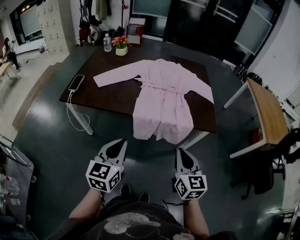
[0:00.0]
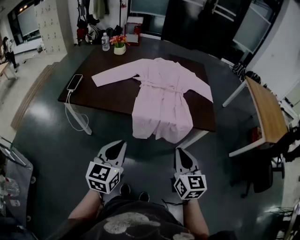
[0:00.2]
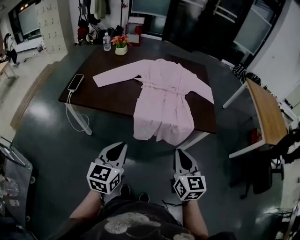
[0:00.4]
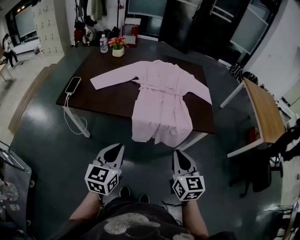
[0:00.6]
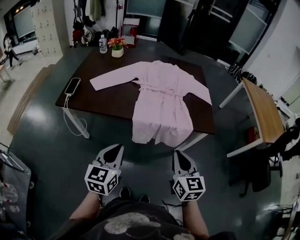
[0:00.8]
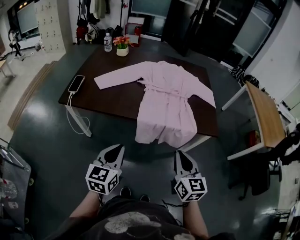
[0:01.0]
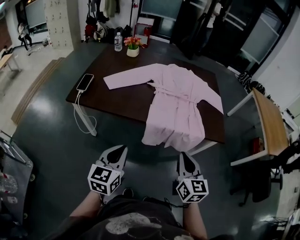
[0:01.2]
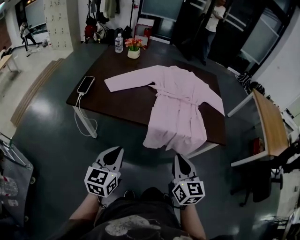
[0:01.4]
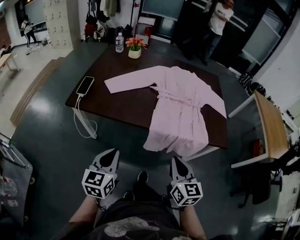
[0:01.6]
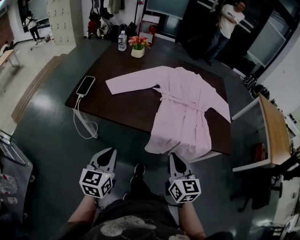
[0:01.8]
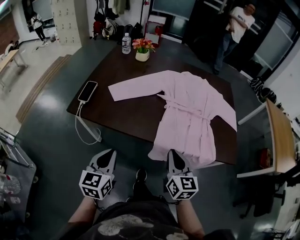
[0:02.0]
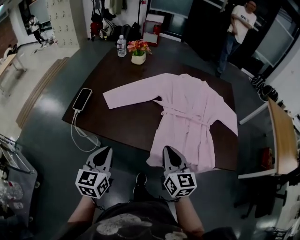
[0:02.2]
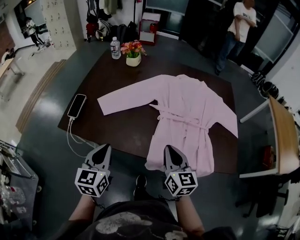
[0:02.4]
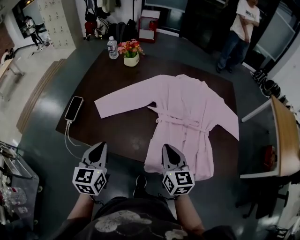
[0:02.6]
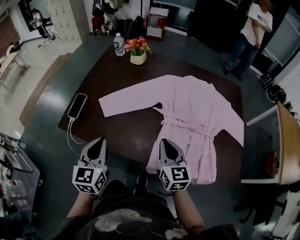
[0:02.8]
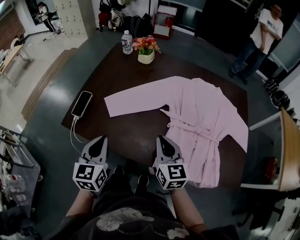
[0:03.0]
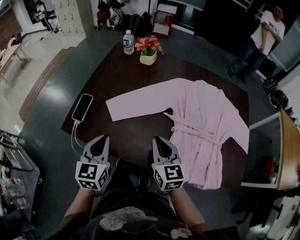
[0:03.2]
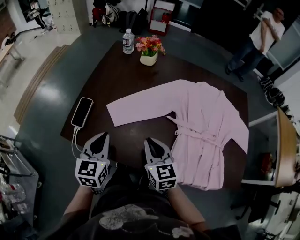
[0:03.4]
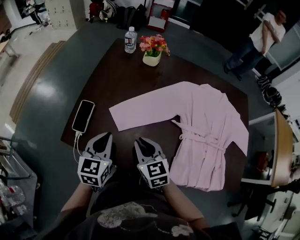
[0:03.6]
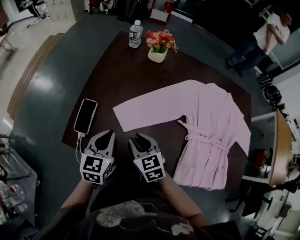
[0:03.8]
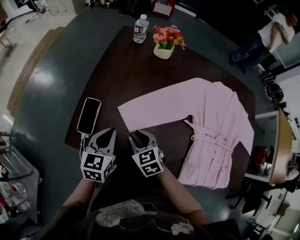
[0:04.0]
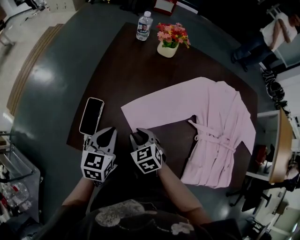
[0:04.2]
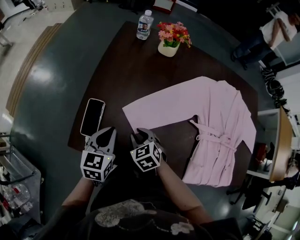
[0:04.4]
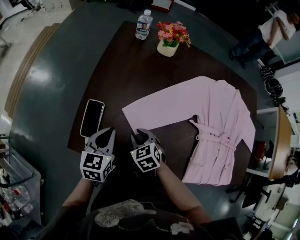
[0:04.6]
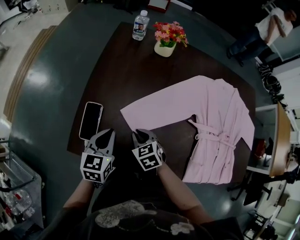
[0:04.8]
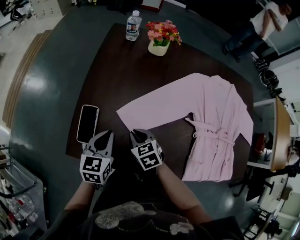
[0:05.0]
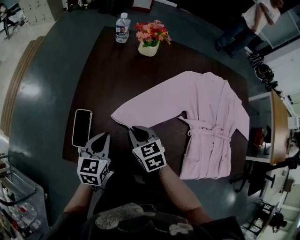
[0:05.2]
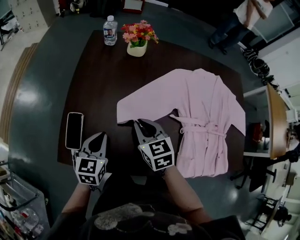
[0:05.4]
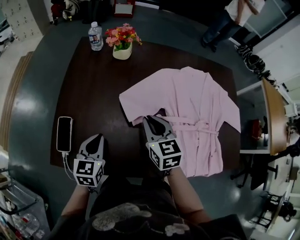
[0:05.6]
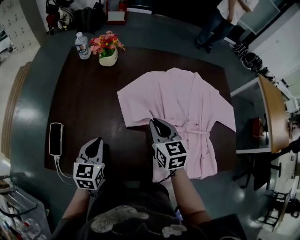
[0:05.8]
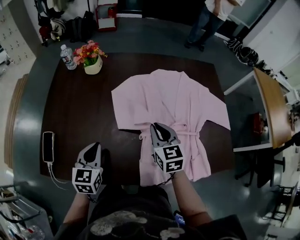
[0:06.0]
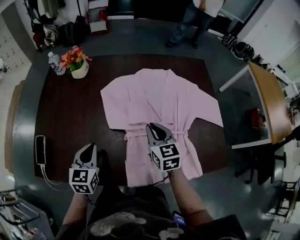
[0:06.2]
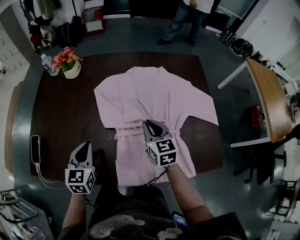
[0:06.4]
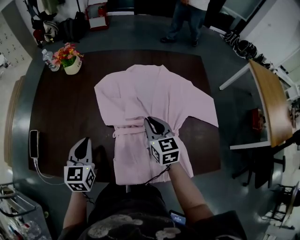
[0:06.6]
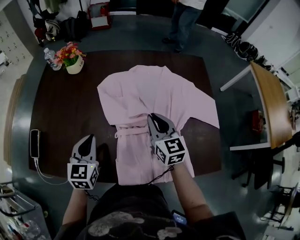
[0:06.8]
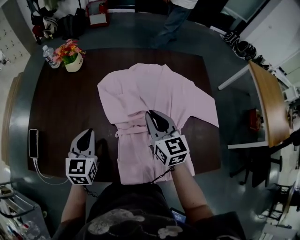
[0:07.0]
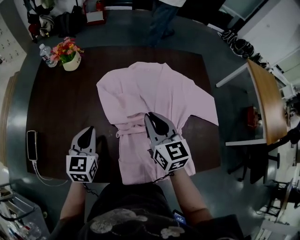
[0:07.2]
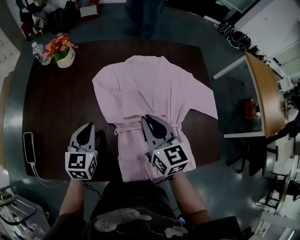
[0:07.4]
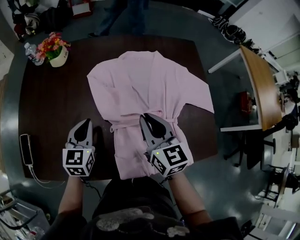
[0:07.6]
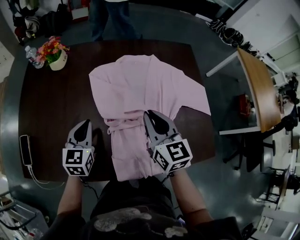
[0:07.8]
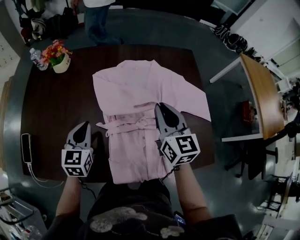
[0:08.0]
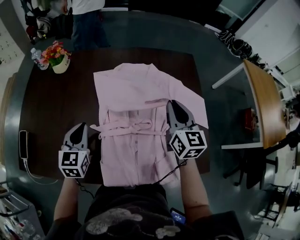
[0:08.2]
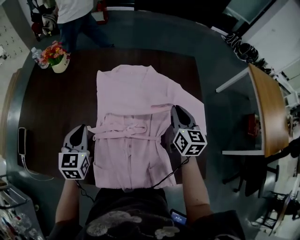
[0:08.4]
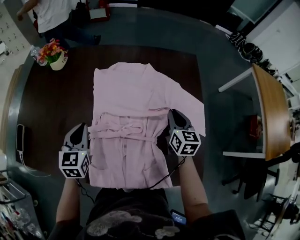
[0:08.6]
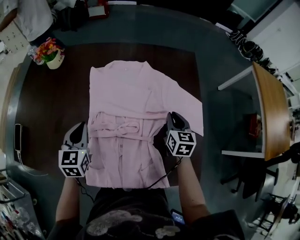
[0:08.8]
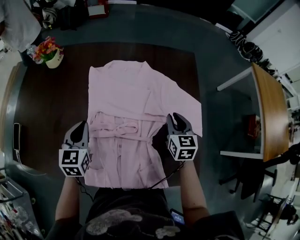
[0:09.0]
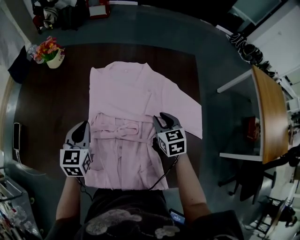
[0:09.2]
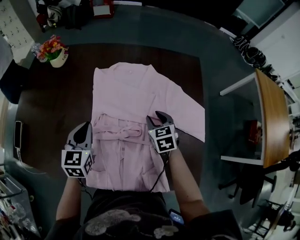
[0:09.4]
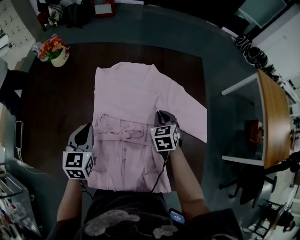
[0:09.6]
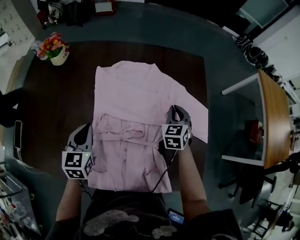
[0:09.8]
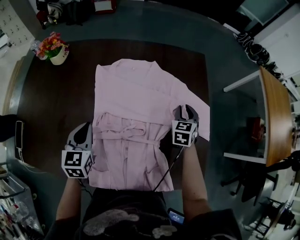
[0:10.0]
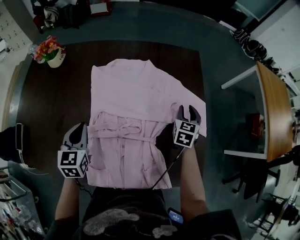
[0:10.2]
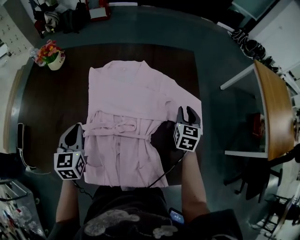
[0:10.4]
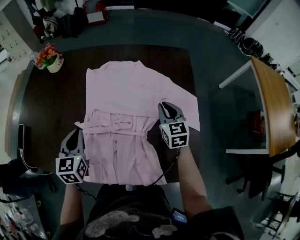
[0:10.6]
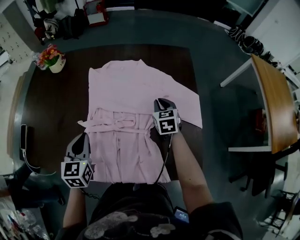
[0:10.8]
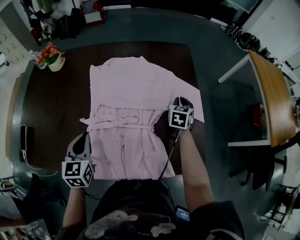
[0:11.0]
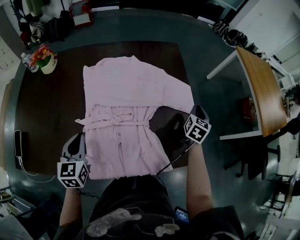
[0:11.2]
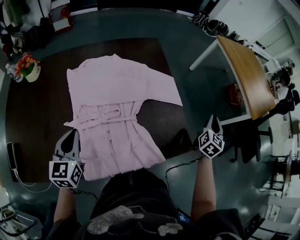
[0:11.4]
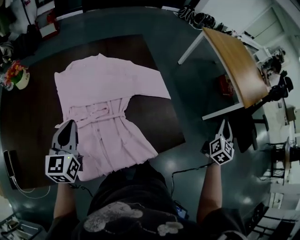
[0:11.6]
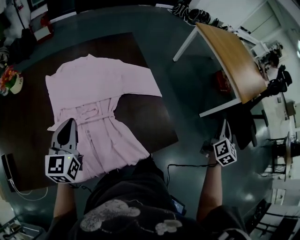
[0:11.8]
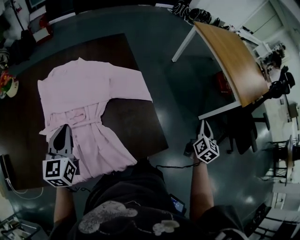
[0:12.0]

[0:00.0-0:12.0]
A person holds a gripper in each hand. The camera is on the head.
0:00.0 to 0:01.6: The left gripper moves to the left, about 15 cm. Meanwhile the right gripper goes roughly 15 cm to the left and forward.
0:01.6 to 0:03.0: Both grippers move forward, about 30 cm.
0:03.0 to 0:04.4: The right gripper travels to the left, downward and forward by roughly 35 cm, and angles its fingers downward, by roughly 40 degrees. Meanwhile the left gripper moves forward, to the left and downward, approximately 25 cm.
0:04.4 to 0:06.0: The right gripper shifts roughly 35 cm to the right, and rotates roughly 40 degrees; the left gripper heads to the right, covering some 20 cm.
0:06.0 to 0:07.6: The left gripper shifts approximately 15 cm to the right and forward. Meanwhile the right gripper shifts approximately 10 cm to the right and upward.
0:07.6 to 0:09.0: The right gripper travels to the right by some 25 cm, while the left gripper shifts approximately 10 cm to the right.
0:09.0 to 0:10.4: The right gripper travels to the right by about 10 cm.
0:10.4 to 0:12.0: The right gripper swings up and down, about 15 cm each way, with 2 reversals, changes its angle by about 40 degrees, and closes its fingers. The left gripper changes place by some 20 cm, and rotates roughly 20 degrees.

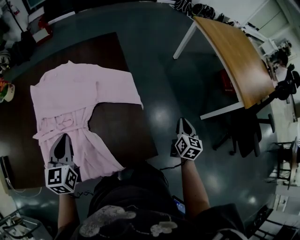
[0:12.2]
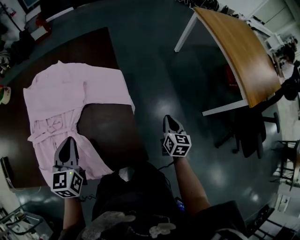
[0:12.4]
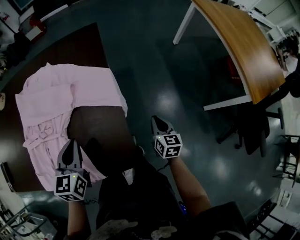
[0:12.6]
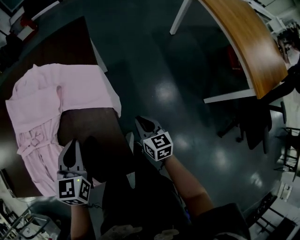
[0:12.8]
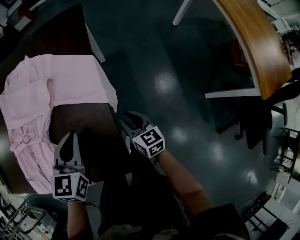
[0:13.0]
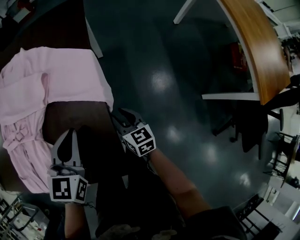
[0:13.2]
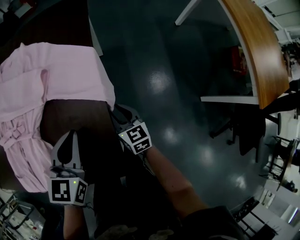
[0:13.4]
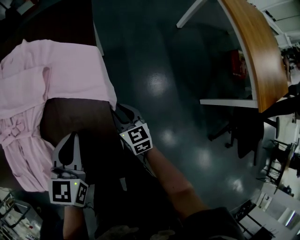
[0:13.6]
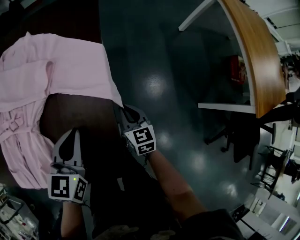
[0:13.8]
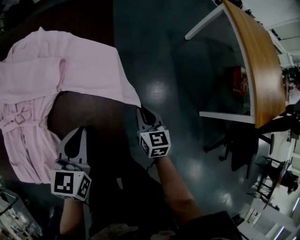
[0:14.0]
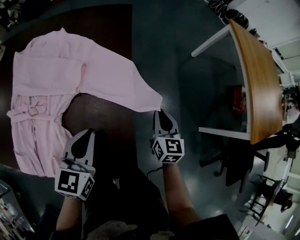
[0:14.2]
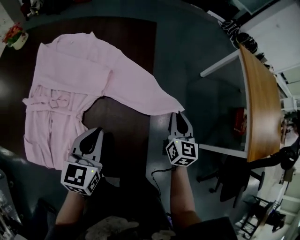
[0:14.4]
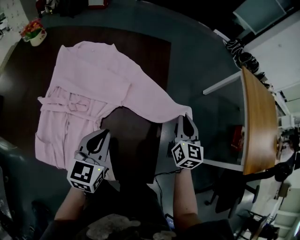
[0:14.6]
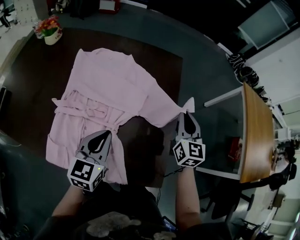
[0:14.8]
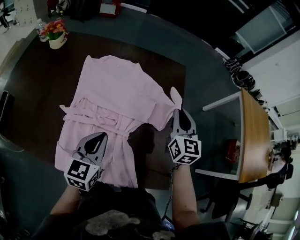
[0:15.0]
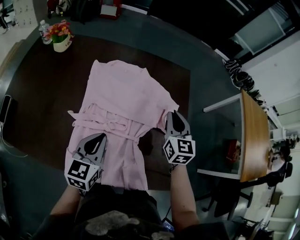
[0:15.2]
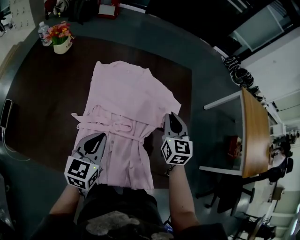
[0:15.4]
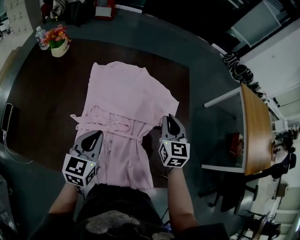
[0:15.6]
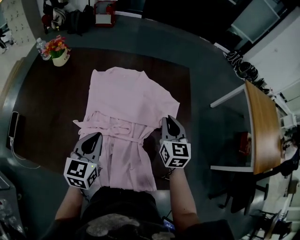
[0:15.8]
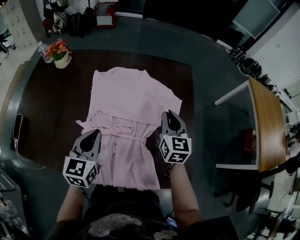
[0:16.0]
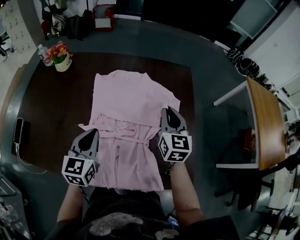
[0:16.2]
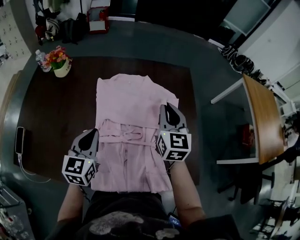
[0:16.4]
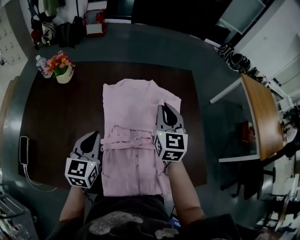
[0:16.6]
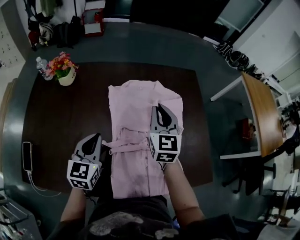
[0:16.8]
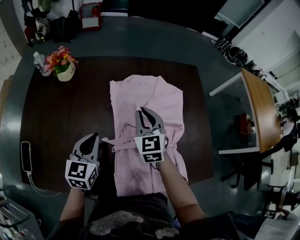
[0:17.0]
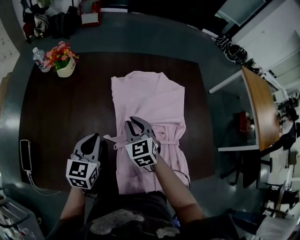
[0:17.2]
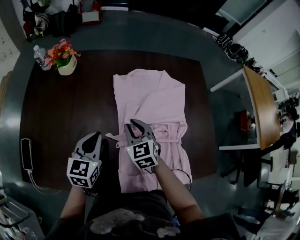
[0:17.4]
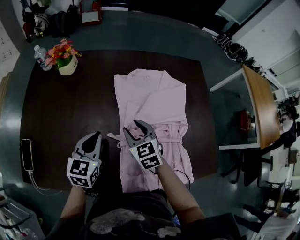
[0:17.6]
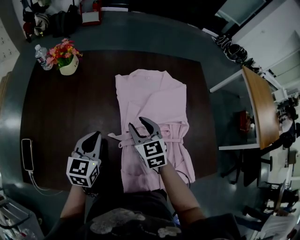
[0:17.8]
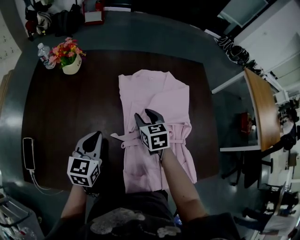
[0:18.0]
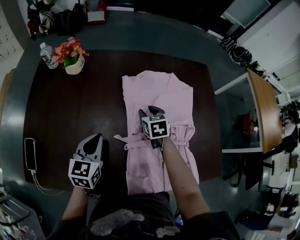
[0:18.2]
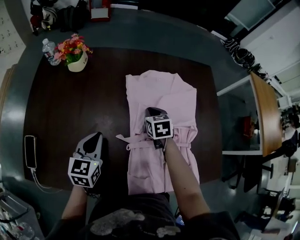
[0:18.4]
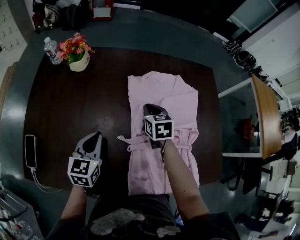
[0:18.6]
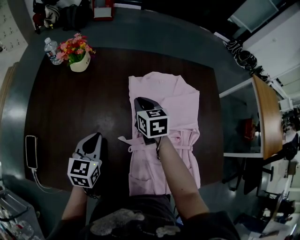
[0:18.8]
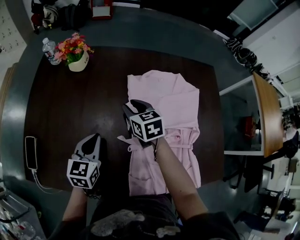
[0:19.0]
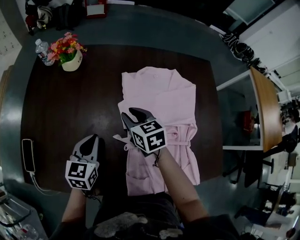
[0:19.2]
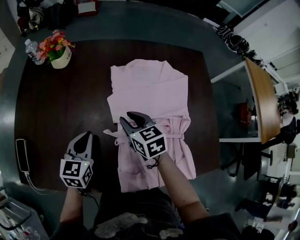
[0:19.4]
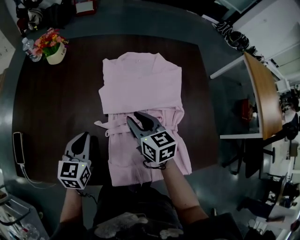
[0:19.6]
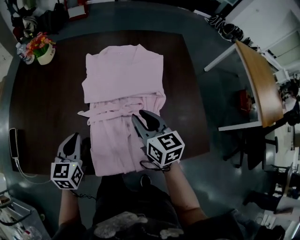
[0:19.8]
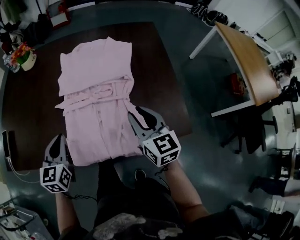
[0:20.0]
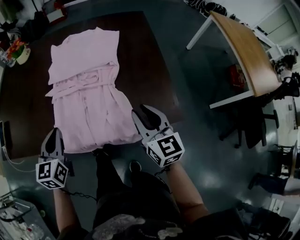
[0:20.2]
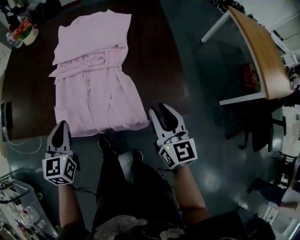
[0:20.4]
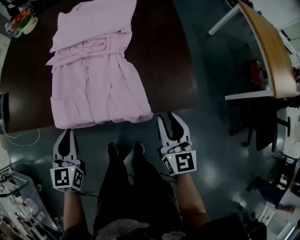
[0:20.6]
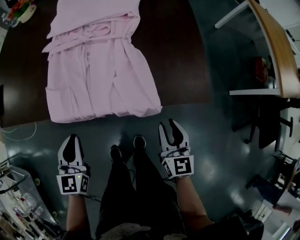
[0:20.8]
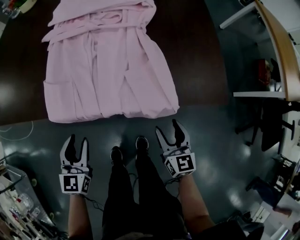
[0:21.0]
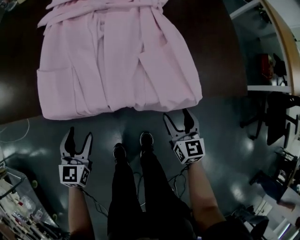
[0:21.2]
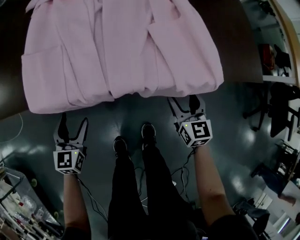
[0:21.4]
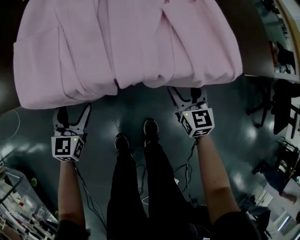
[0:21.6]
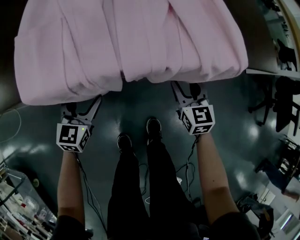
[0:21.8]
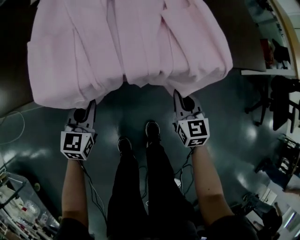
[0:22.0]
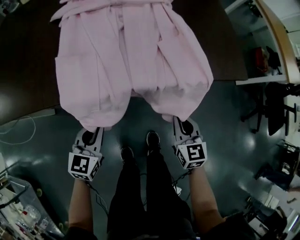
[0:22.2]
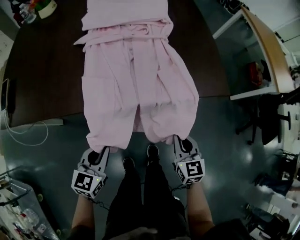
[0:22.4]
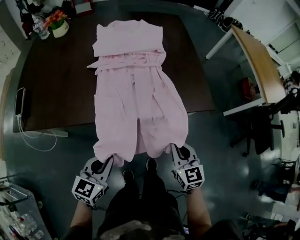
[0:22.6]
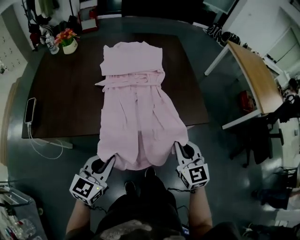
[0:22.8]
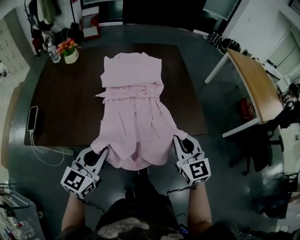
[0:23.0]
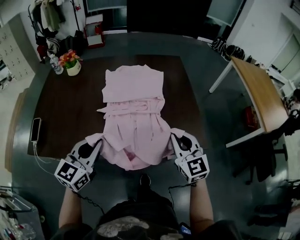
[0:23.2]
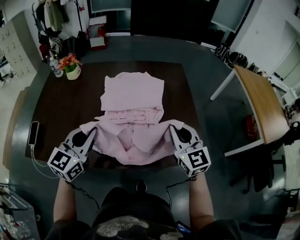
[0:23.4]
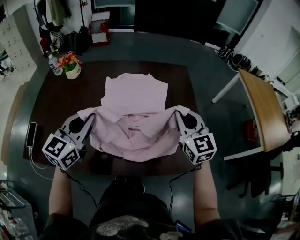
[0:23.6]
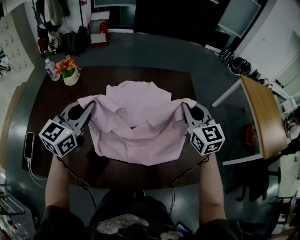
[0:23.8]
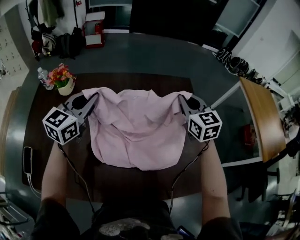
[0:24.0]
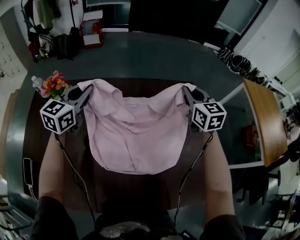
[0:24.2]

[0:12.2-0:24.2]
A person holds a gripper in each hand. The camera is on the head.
0:12.2 to 0:13.8: The right gripper shifts some 25 cm downward, to the left and forward, rotates roughly 40 degrees, and opens, then closes again. The left gripper shifts some 25 cm to the right and downward.
0:13.8 to 0:15.2: The right gripper is displaced upward and to the left by about 40 cm, and swivels roughly 20 degrees; the left gripper travels to the left by some 30 cm.
0:15.2 to 0:16.6: Both grippers travel together to the left, roughly 15 cm.
0:16.6 to 0:18.2: The left gripper heads to the left and downward, covering approximately 15 cm. The right gripper moves downward and to the left, roughly 25 cm, points its fingers roughly 40 degrees further downward, and opens its fingers.
0:18.2 to 0:19.8: The left gripper shifts some 10 cm backward and to the right. Meanwhile the right gripper heads backward, to the right and upward, covering roughly 25 cm, swivels approximately 30 degrees, and closes, then reopens.
0:19.8 to 0:21.2: The left gripper moves backward and downward, roughly 35 cm, and opens. Meanwhile the right gripper moves downward, backward and to the right, roughly 40 cm, and opens.
0:21.2 to 0:22.6: The left gripper moves upward, approximately 20 cm, swivels approximately 20 degrees, and closes. Meanwhile the right gripper travels upward and backward by roughly 25 cm, and closes.
0:22.6 to 0:24.2: Both grippers are carried forward, approximately 70 cm.
